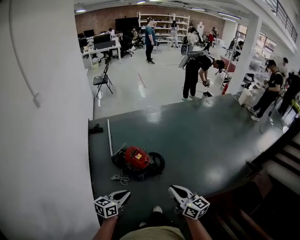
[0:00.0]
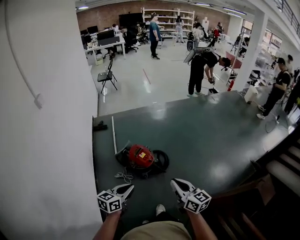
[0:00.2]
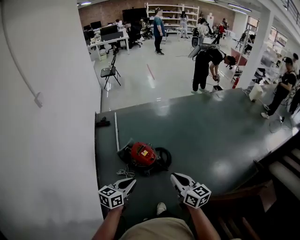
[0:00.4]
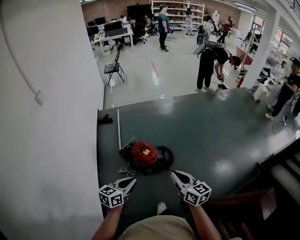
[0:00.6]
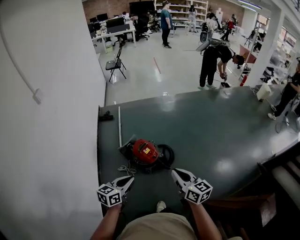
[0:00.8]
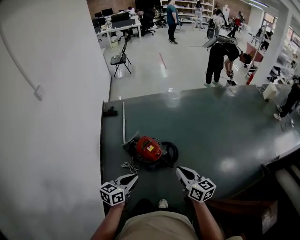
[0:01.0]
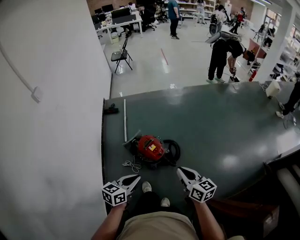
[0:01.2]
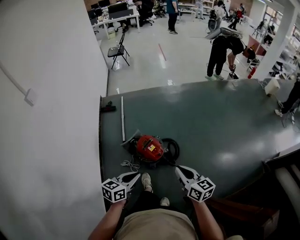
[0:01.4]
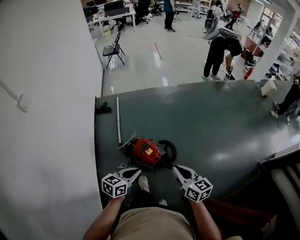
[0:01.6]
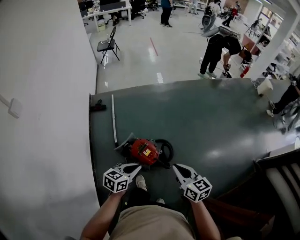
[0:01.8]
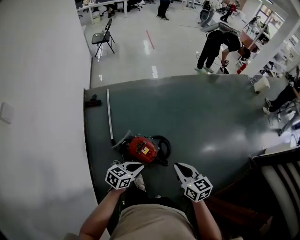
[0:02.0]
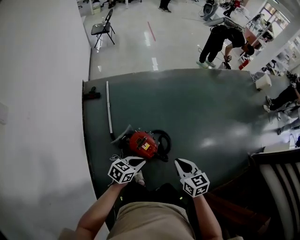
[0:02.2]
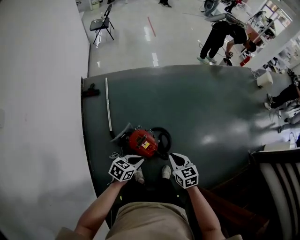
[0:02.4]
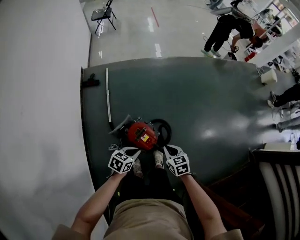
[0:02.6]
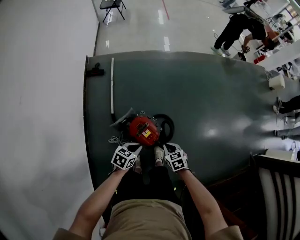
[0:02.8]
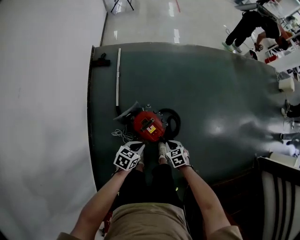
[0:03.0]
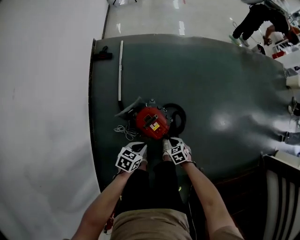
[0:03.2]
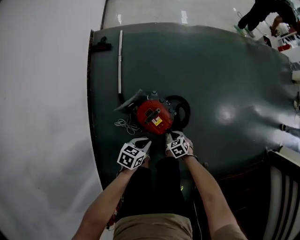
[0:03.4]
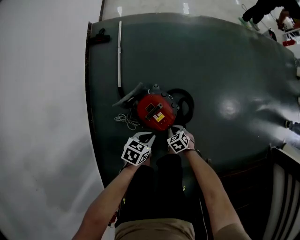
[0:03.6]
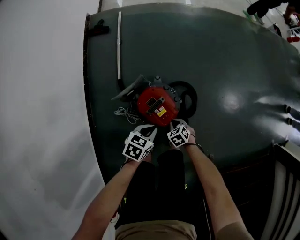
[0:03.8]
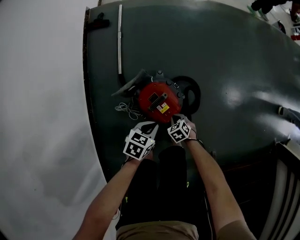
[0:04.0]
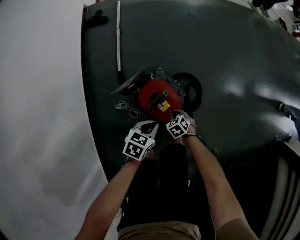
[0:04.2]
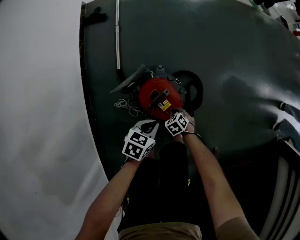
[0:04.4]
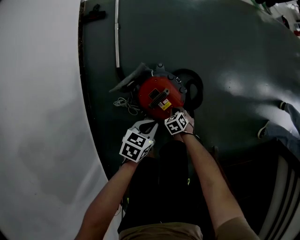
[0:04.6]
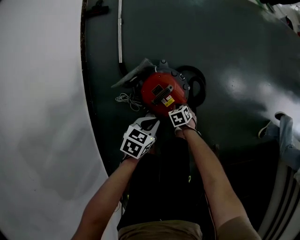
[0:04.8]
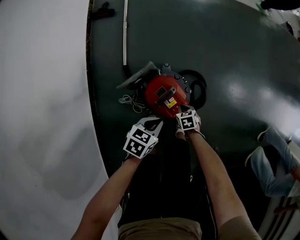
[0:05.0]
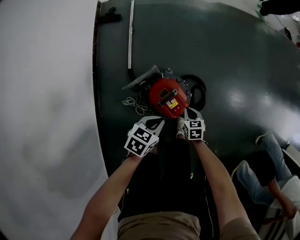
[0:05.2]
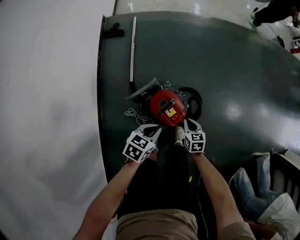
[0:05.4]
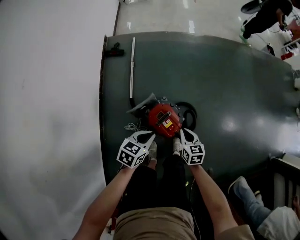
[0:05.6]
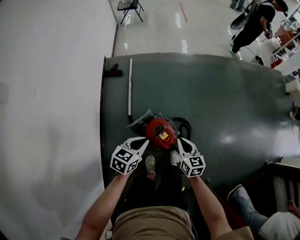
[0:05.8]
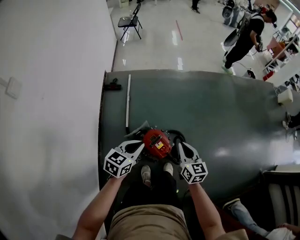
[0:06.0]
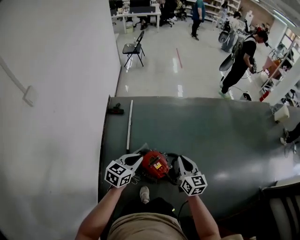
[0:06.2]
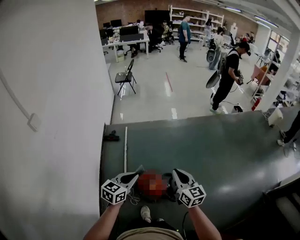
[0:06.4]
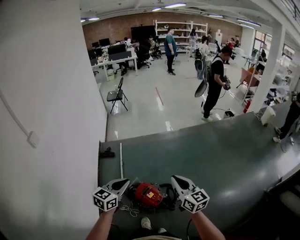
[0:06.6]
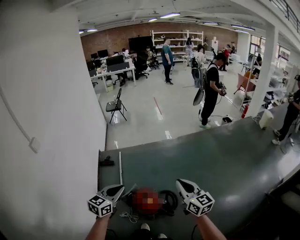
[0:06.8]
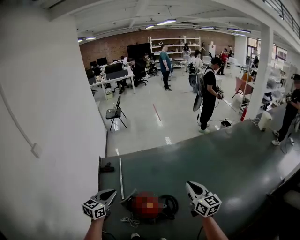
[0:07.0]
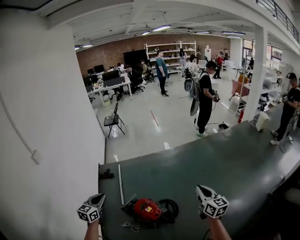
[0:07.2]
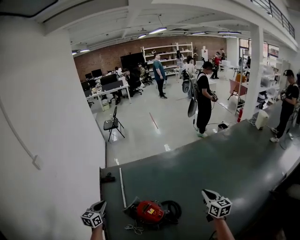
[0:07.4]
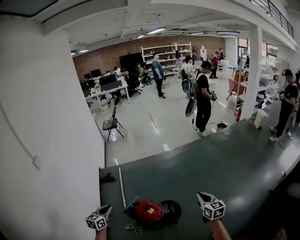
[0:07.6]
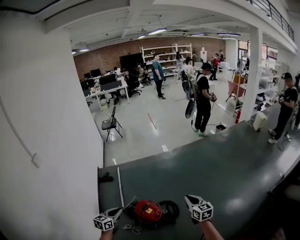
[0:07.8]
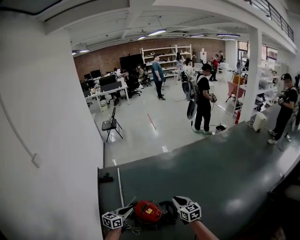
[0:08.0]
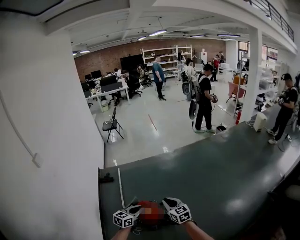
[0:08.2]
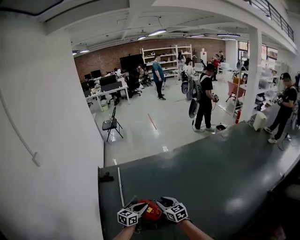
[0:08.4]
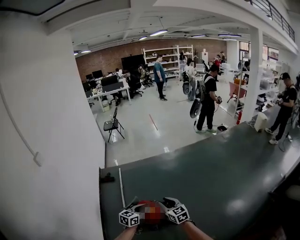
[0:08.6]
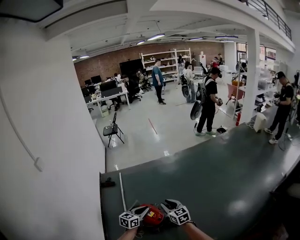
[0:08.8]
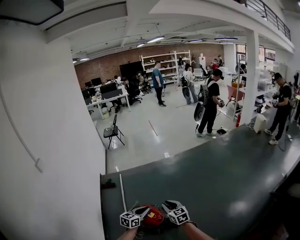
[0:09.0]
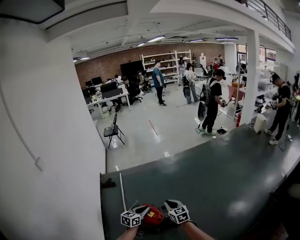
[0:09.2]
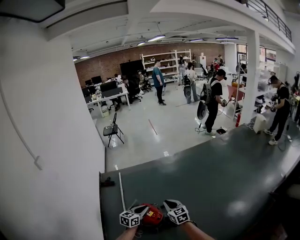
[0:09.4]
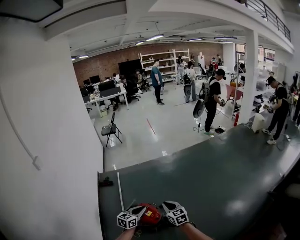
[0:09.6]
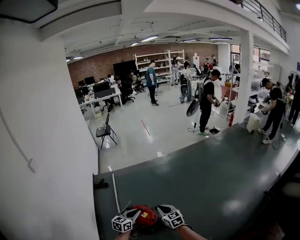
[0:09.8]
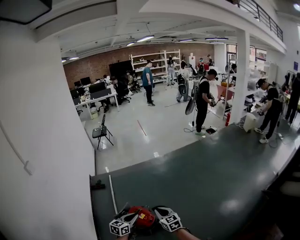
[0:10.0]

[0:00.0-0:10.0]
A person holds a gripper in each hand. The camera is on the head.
0.0 to 1.4 s: Both grippers move forward, about 25 cm.
1.4 to 2.8 s: The right gripper goes roughly 40 cm downward, forward and to the left, and tips its fingers downward by some 40 degrees; the left gripper shifts approximately 35 cm downward and forward, and rotates about 20 degrees.
2.8 to 4.2 s: The left gripper shifts about 25 cm downward; the right gripper heads downward, covering roughly 35 cm, and changes its angle by approximately 20 degrees.
4.2 to 5.8 s: The two grippers go roughly 40 cm upward. The right gripper points its fingers about 40 degrees further upward. The left gripper changes its angle by approximately 20 degrees.
5.8 to 7.2 s: The left gripper goes roughly 30 cm upward and backward, and swivels some 30 degrees; the right gripper goes roughly 50 cm upward and to the right, and rotates some 30 degrees.
7.2 to 8.6 s: The left gripper travels to the right and downward by roughly 25 cm, and turns by roughly 20 degrees, while the right gripper heads to the left and downward, covering about 25 cm, swivels some 20 degrees, and opens up.
8.6 to 10.0 s: The right gripper closes up.

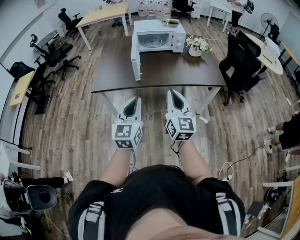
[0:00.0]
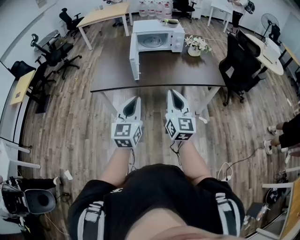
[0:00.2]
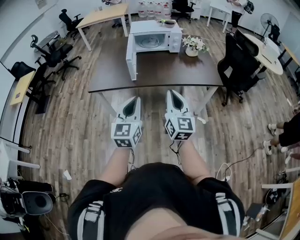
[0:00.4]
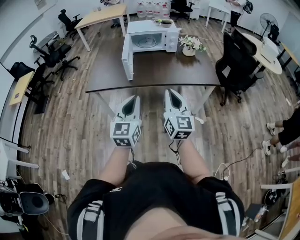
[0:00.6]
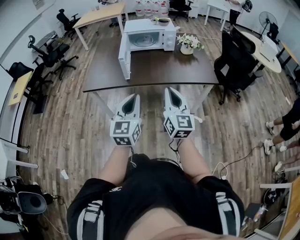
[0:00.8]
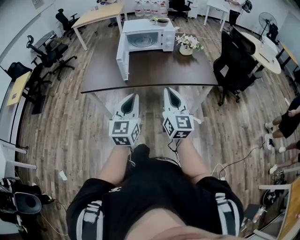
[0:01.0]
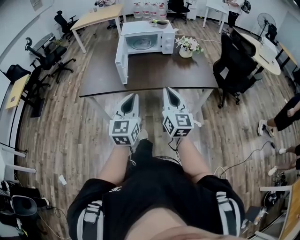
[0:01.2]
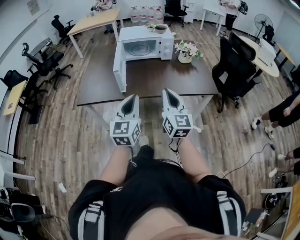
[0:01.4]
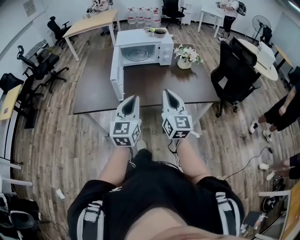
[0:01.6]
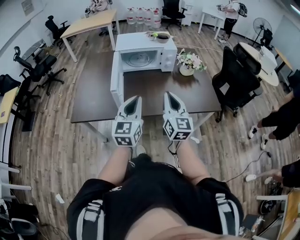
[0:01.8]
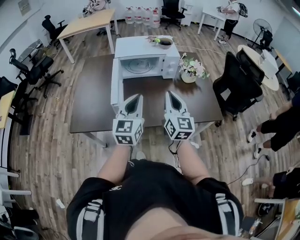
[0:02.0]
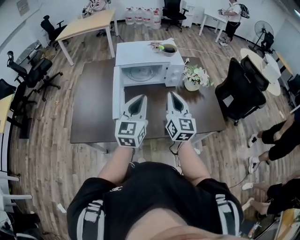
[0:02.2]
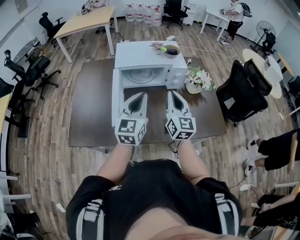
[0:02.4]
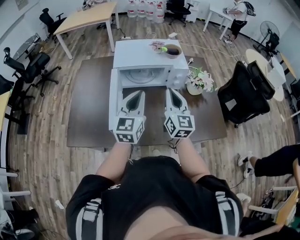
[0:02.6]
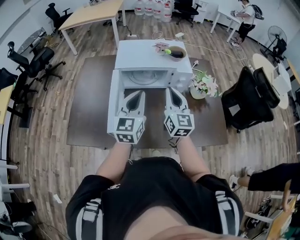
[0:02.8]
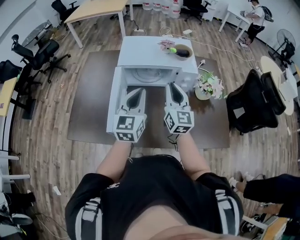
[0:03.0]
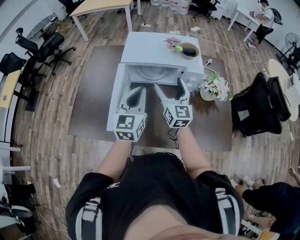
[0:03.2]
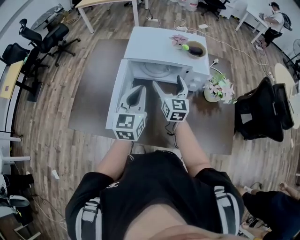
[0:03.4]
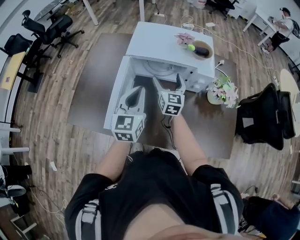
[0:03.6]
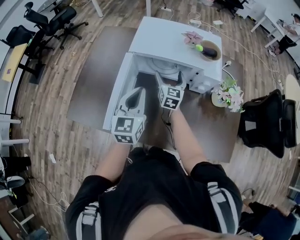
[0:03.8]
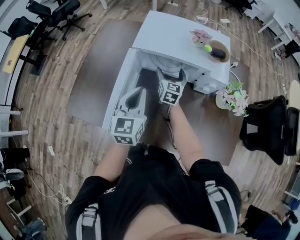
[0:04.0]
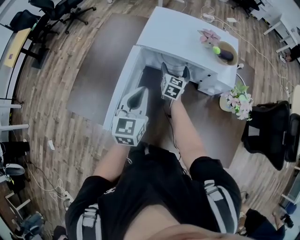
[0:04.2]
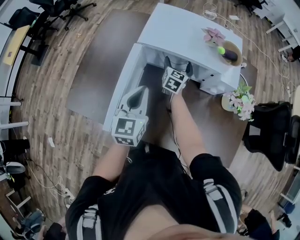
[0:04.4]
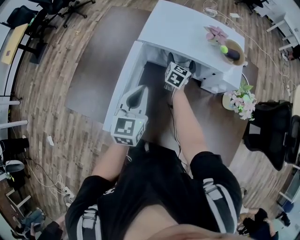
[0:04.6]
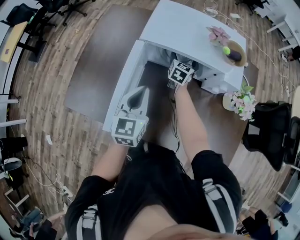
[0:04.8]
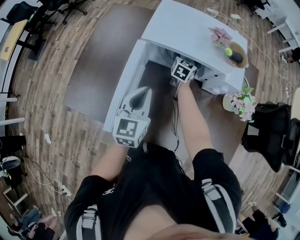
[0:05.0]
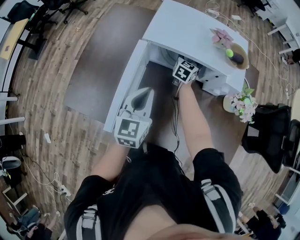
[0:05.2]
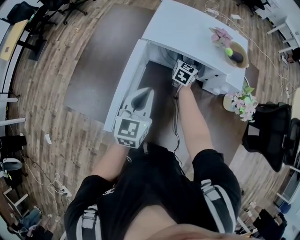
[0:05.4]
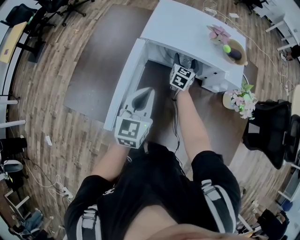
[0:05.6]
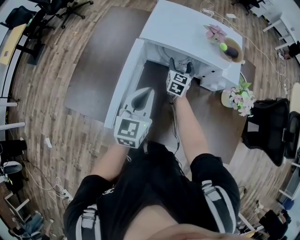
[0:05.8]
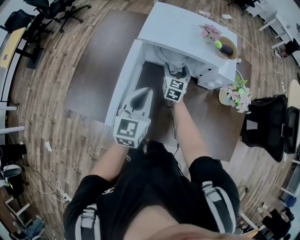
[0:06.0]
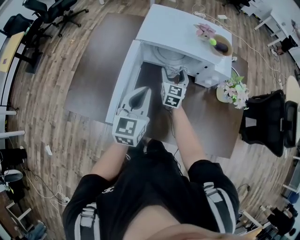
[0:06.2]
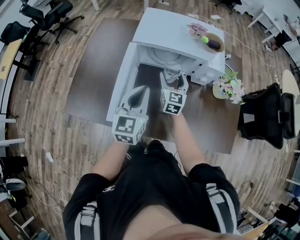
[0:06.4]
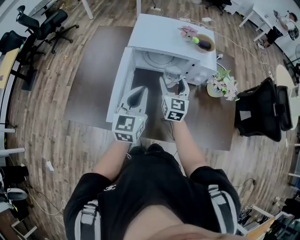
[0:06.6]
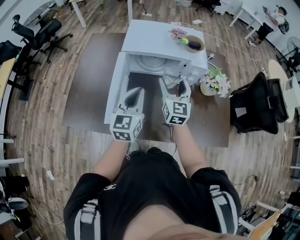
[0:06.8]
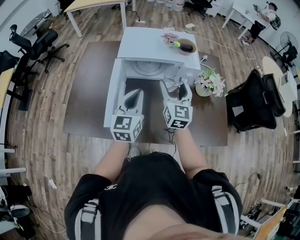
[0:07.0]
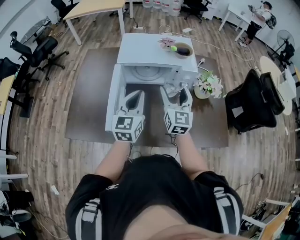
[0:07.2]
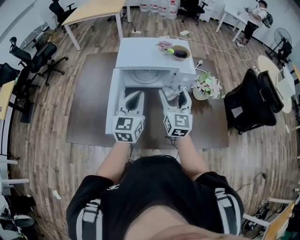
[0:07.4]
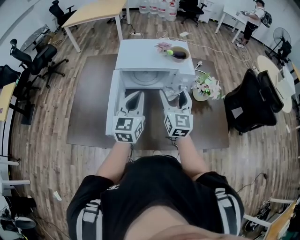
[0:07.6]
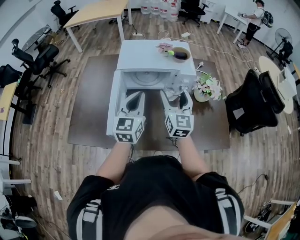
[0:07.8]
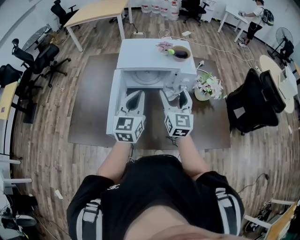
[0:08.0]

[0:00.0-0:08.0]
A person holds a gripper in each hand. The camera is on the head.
0.0 to 1.6 s: Both grippers move forward and to the right, roughly 20 cm.
1.6 to 3.2 s: The two grippers travel together, forward, about 40 cm. The right gripper opens its fingers.
3.2 to 4.8 s: The left gripper travels downward, to the left and forward by about 15 cm, while the right gripper travels forward and downward by roughly 35 cm, and swivels about 30 degrees.
4.8 to 6.4 s: The left gripper heads backward, covering approximately 5 cm; the right gripper moves backward and upward, roughly 20 cm.
6.4 to 8.0 s: The right gripper shifts approximately 20 cm upward, backward and to the right. Meanwhile the left gripper heads upward, covering approximately 5 cm.

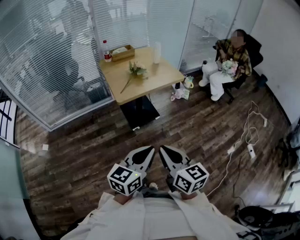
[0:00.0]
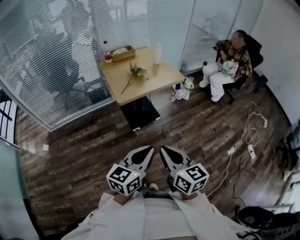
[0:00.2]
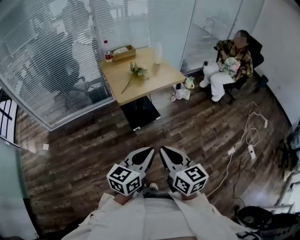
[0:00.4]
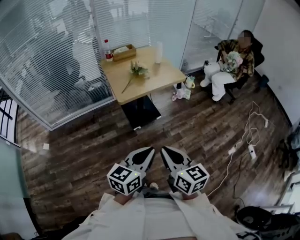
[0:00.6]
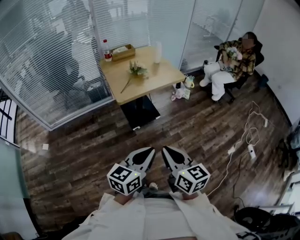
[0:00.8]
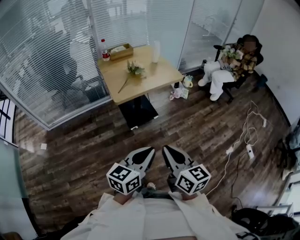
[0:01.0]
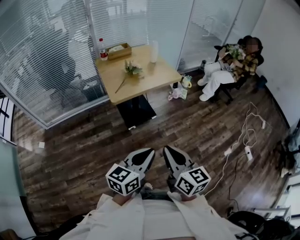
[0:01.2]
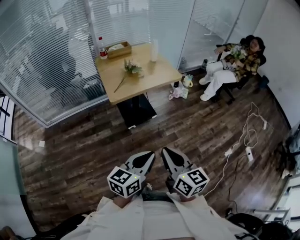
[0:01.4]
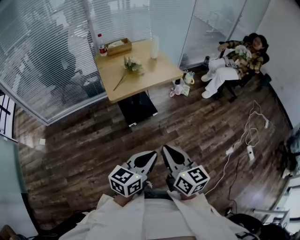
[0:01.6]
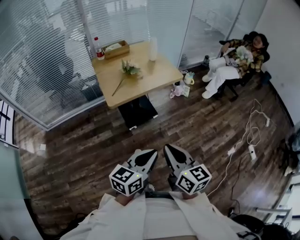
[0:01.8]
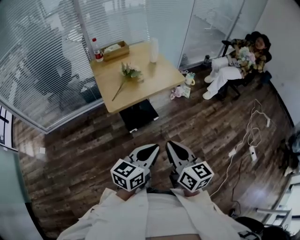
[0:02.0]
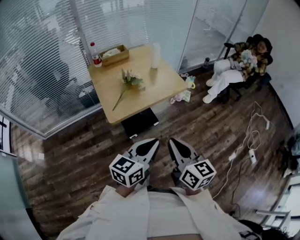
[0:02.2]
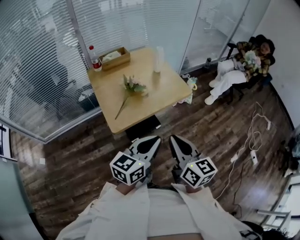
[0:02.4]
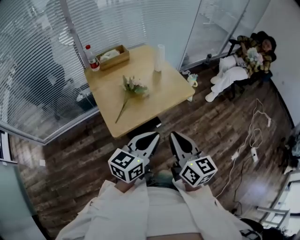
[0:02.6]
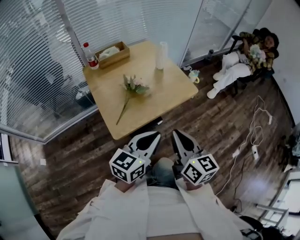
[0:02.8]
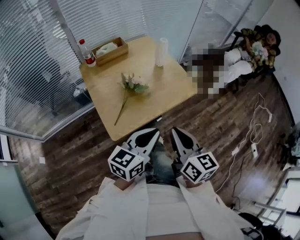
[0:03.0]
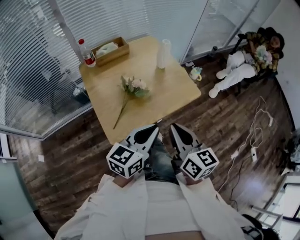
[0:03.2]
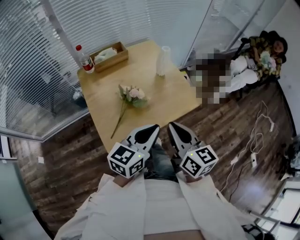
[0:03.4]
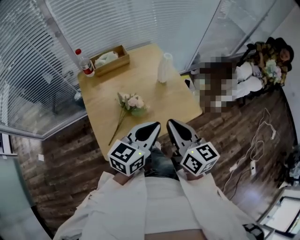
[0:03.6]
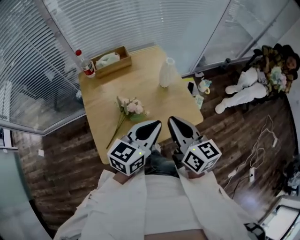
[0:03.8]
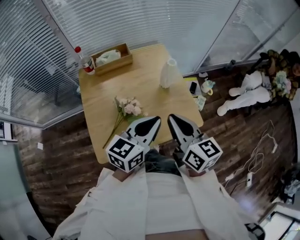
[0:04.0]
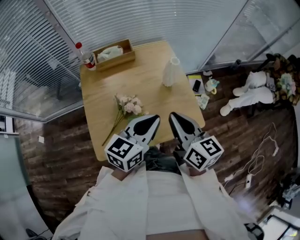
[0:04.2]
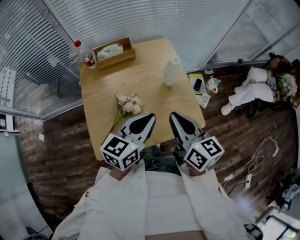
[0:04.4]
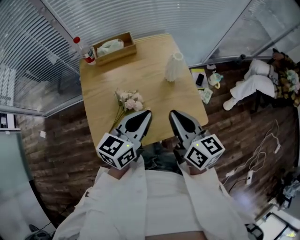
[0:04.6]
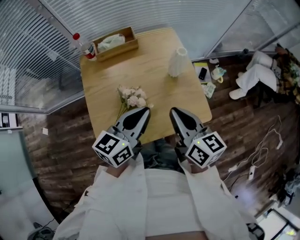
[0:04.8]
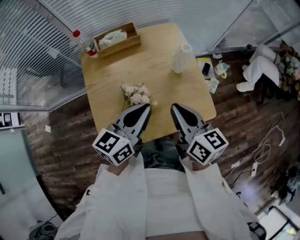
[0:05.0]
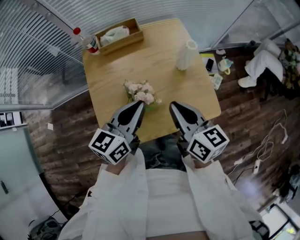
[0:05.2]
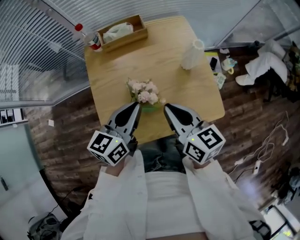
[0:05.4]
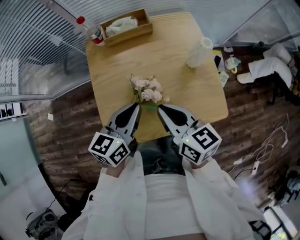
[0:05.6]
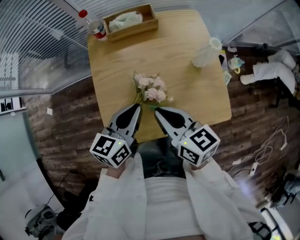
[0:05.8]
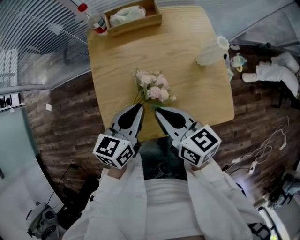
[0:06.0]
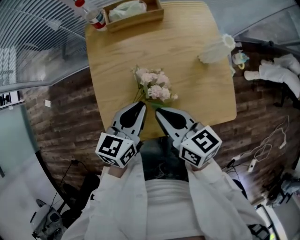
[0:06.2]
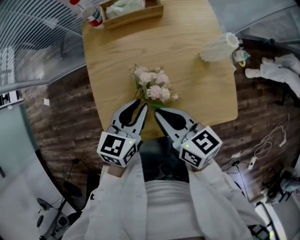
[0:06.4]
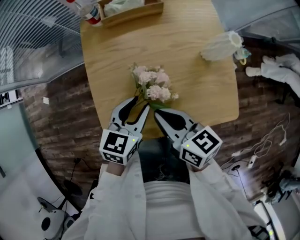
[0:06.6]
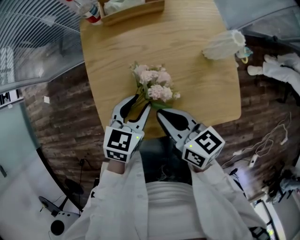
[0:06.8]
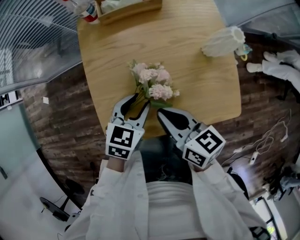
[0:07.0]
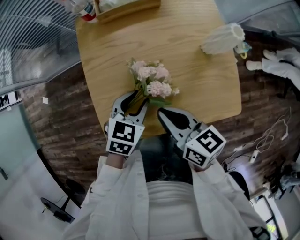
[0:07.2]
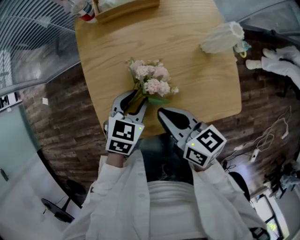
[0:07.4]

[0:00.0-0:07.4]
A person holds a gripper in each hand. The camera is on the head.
0.0 to 1.4 s: Both grippers travel together to the right, some 5 cm.
1.4 to 3.0 s: Both grippers travel together forward, approximately 35 cm.
3.0 to 4.4 s: Both grippers move forward, approximately 25 cm.
4.4 to 6.0 s: The two grippers go roughly 15 cm to the left and downward. The right gripper turns by about 20 degrees.
6.0 to 7.4 s: The left gripper is displaced downward by about 10 cm, rotates approximately 30 degrees, and opens its fingers.
